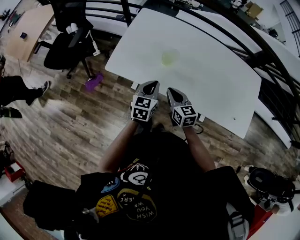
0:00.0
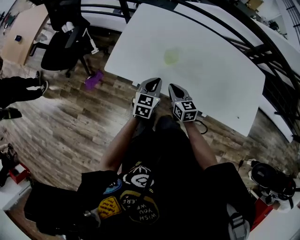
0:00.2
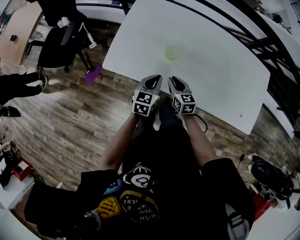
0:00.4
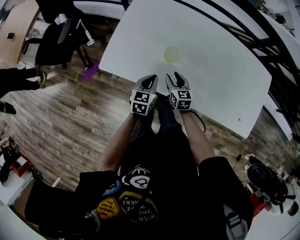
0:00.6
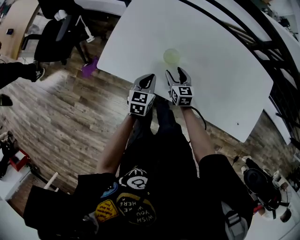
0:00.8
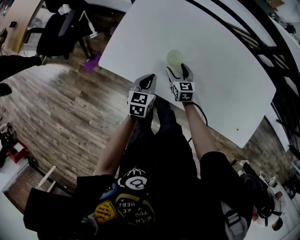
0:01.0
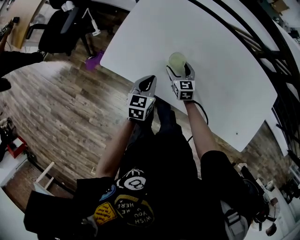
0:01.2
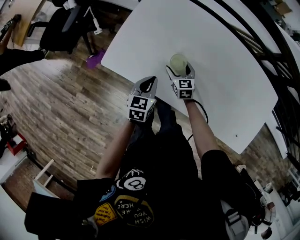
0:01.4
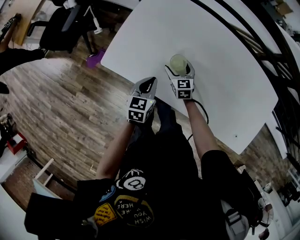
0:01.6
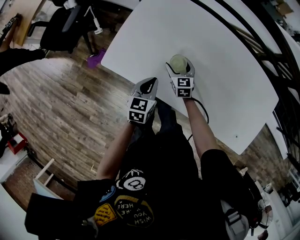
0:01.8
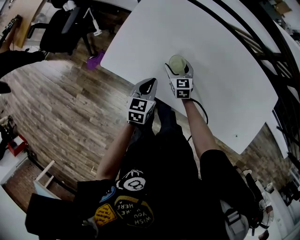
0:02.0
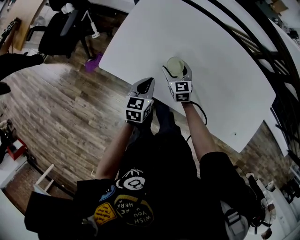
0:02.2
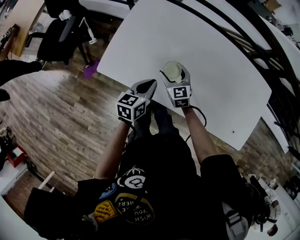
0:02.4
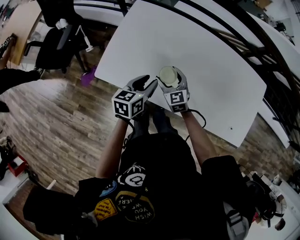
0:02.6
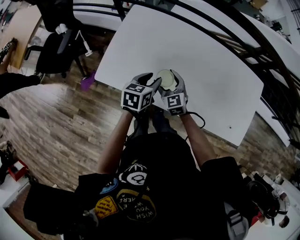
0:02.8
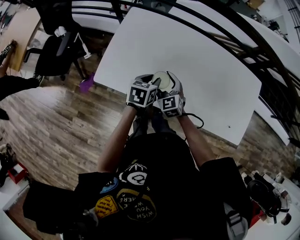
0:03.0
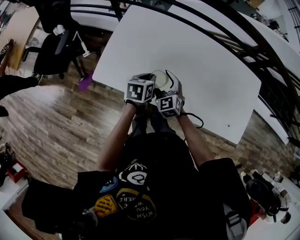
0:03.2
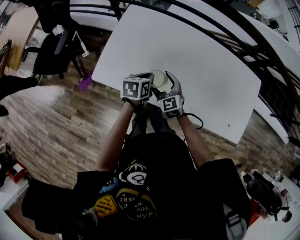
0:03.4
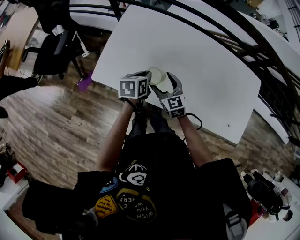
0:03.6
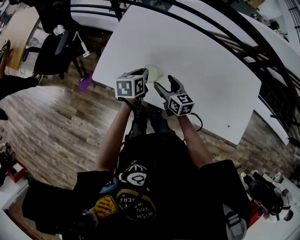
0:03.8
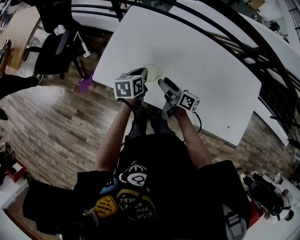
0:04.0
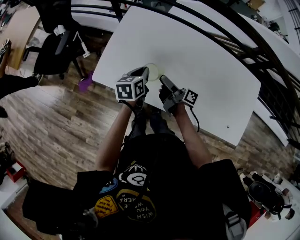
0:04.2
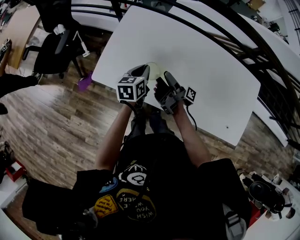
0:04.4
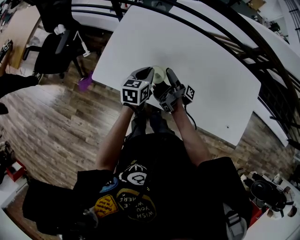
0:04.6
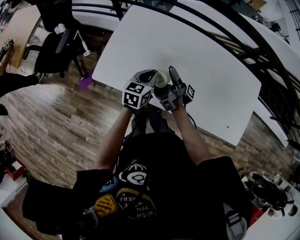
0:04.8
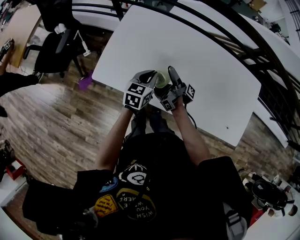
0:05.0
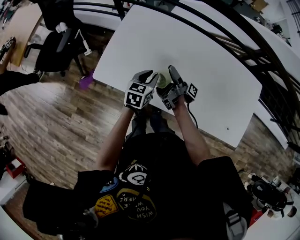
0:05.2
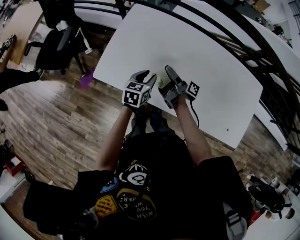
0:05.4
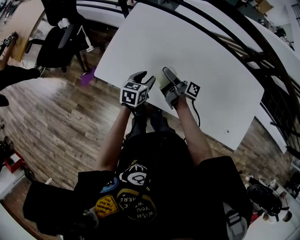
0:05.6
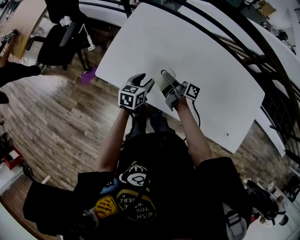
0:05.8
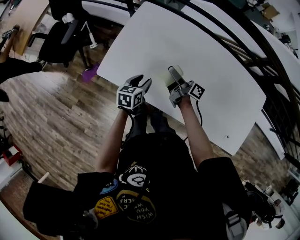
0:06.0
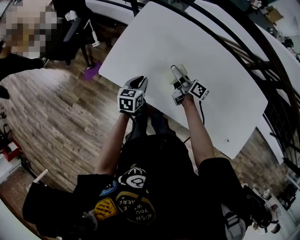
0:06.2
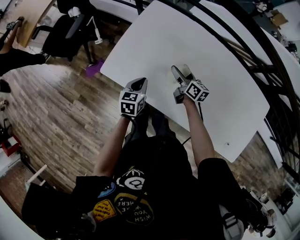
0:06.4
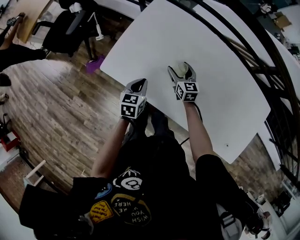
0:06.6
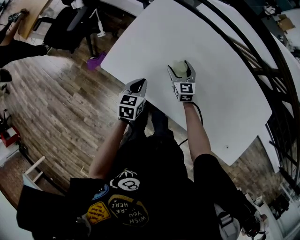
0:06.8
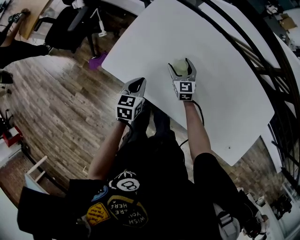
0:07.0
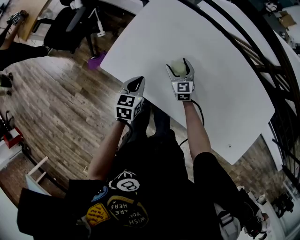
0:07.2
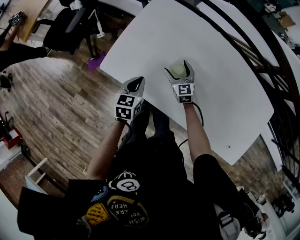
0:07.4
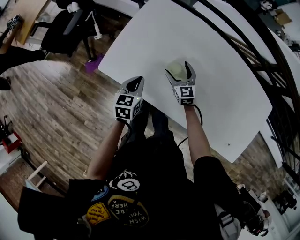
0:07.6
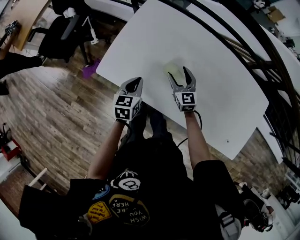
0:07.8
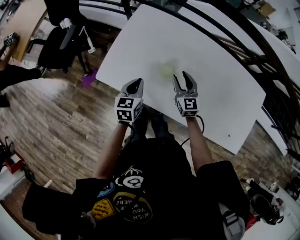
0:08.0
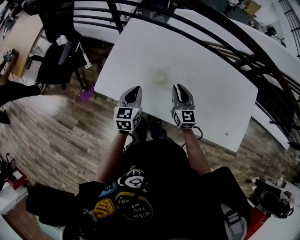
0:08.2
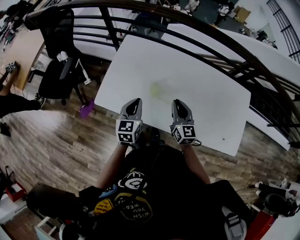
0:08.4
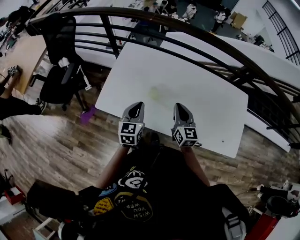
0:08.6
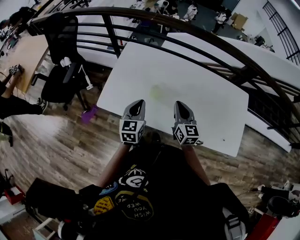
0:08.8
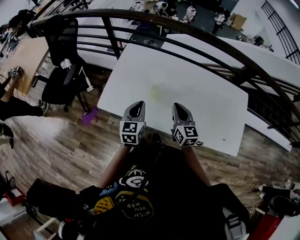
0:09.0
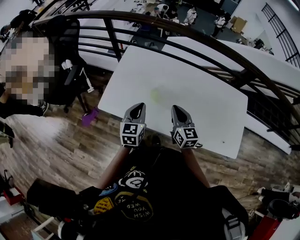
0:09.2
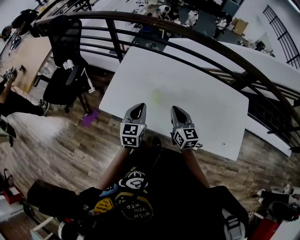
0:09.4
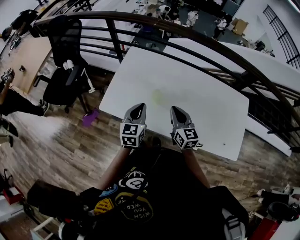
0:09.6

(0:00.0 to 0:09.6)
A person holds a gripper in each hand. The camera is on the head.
0:00.0 - 0:01.6: The left gripper is displaced downward and forward by about 15 cm; the right gripper is displaced forward and downward by about 25 cm, and opens.
0:01.6 - 0:03.2: The left gripper goes some 10 cm to the right and upward, and opens and closes again, while the right gripper moves upward and backward, approximately 15 cm, and turns by roughly 20 degrees.
0:03.2 - 0:04.8: The right gripper moves about 5 cm, and rolls clockwise, seen from behind, by about 130 degrees.
0:04.8 - 0:06.4: The left gripper heads to the left and downward, covering approximately 10 cm, turns by approximately 20 degrees, and opens and closes again; the right gripper heads downward and forward, covering approximately 10 cm, and twists some 70 degrees counterclockwise, seen from behind.
0:06.4 - 0:08.0: The right gripper heads backward, covering approximately 5 cm, rotates around the line of its fingers by roughly 40 degrees, counterclockwise from behind, and closes.
0:08.0 - 0:09.6: The right gripper travels upward and backward by roughly 15 cm, and closes up, while the left gripper travels upward by approximately 15 cm.

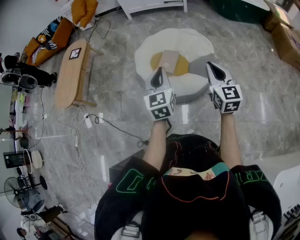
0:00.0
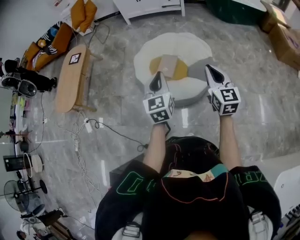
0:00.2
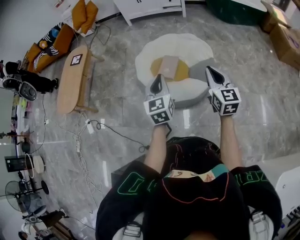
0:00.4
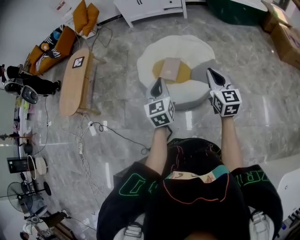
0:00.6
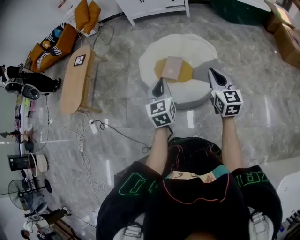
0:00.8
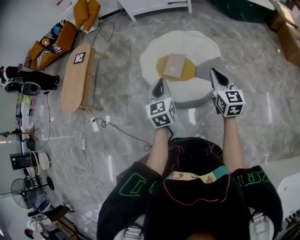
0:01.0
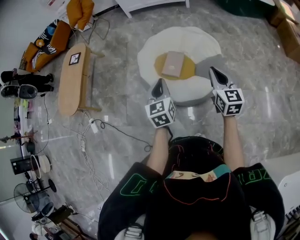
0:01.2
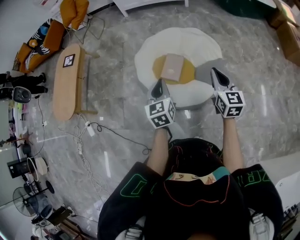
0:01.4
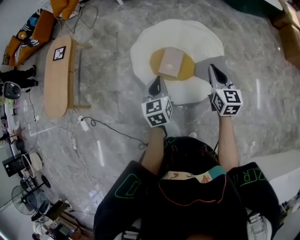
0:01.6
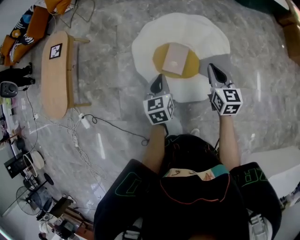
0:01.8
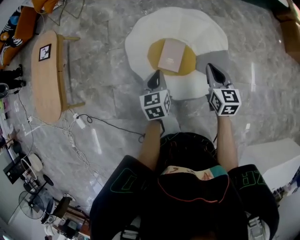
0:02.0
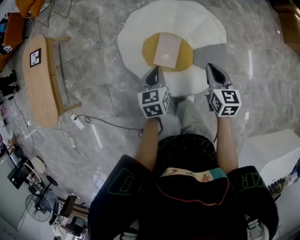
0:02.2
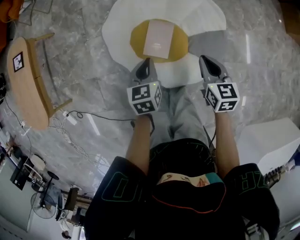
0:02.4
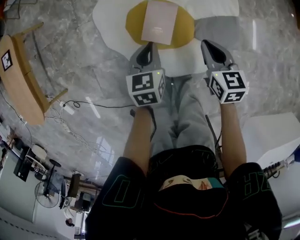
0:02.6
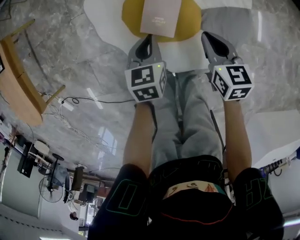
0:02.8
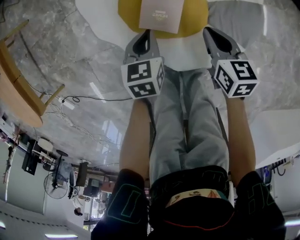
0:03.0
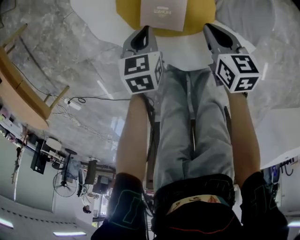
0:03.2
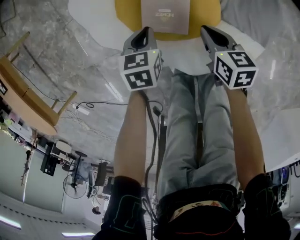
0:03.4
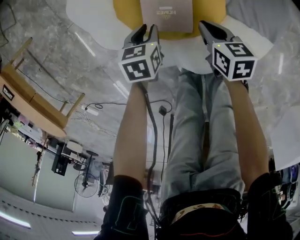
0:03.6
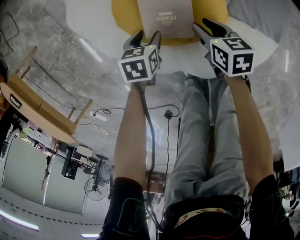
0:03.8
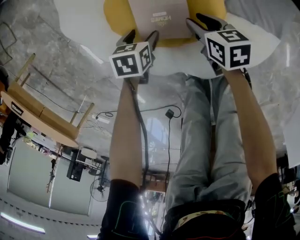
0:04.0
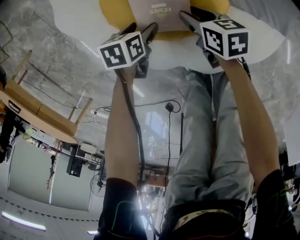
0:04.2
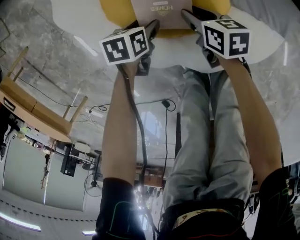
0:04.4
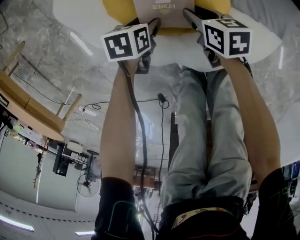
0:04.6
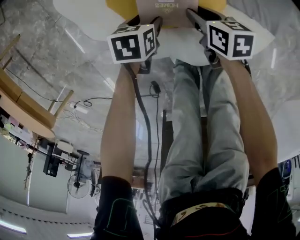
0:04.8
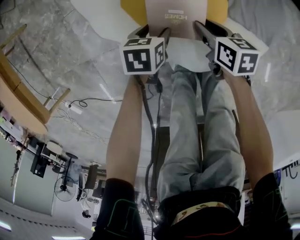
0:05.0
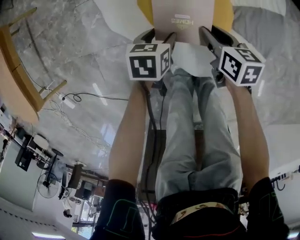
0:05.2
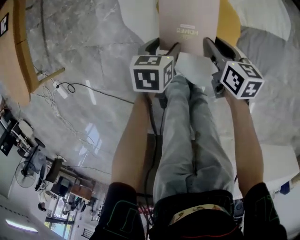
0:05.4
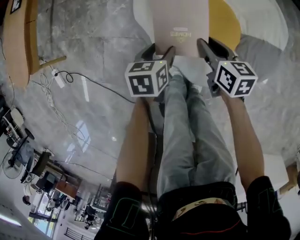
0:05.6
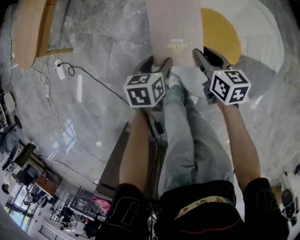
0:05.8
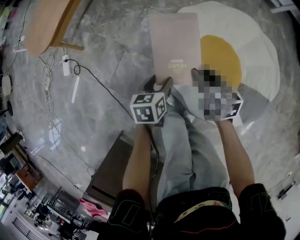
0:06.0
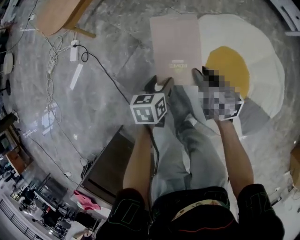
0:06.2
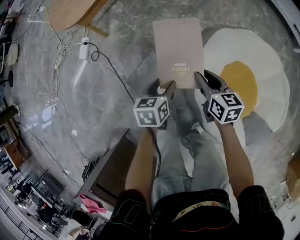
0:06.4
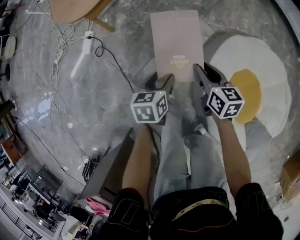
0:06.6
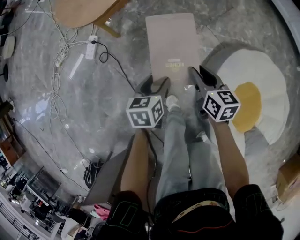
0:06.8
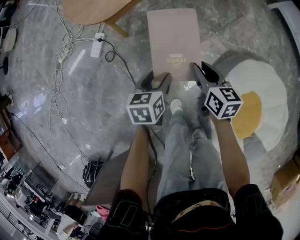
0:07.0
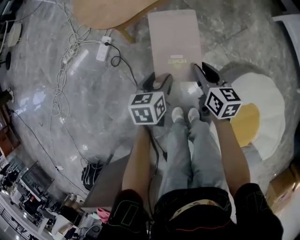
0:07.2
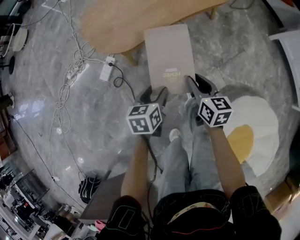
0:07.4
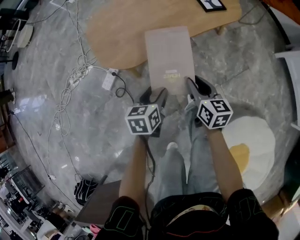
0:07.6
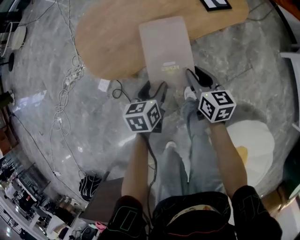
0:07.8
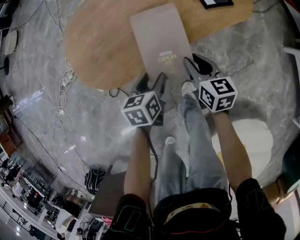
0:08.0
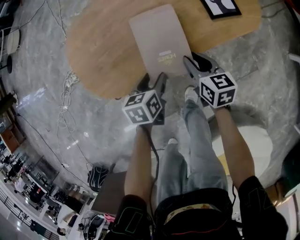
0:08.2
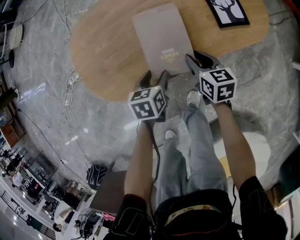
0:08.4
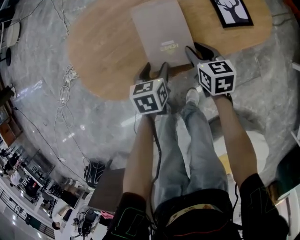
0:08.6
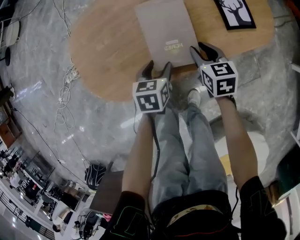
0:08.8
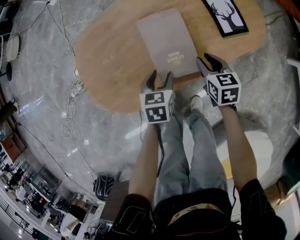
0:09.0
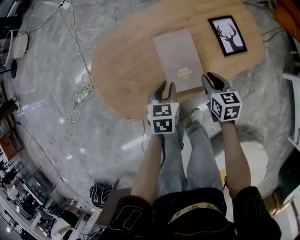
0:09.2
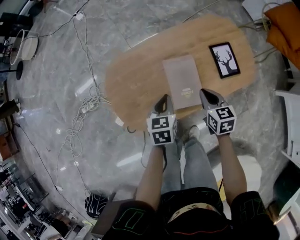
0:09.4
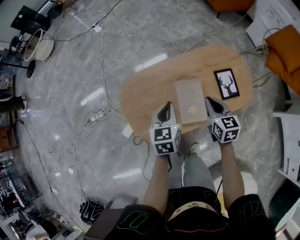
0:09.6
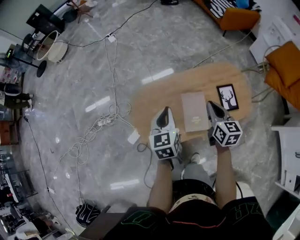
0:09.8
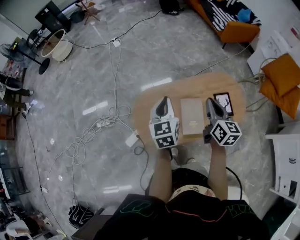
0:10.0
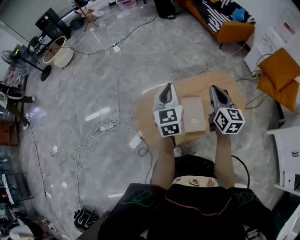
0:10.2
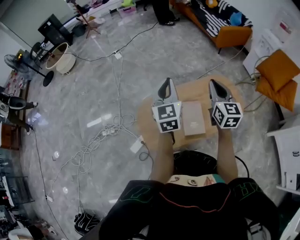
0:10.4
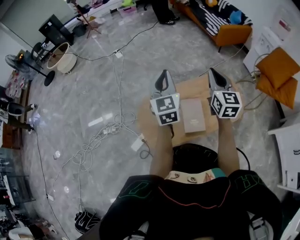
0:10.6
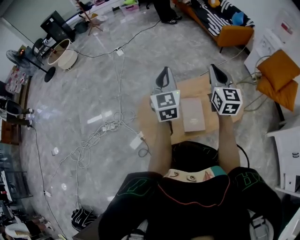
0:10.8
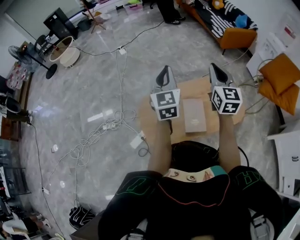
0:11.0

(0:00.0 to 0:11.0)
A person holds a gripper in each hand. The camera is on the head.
0:00.0 - 0:01.6: The grippers both shift forward and downward by roughly 25 cm.
0:01.6 - 0:03.2: The grippers both shift downward by some 40 cm. The left gripper swivels approximately 30 degrees. Meanwhile the right gripper changes its angle by roughly 30 degrees.
0:03.2 - 0:04.8: The grippers both shift downward by about 15 cm. The right gripper opens its fingers; the left gripper changes its angle by about 20 degrees, and opens.
0:04.8 - 0:06.2: The right gripper moves roughly 40 cm, and rotates around the line of its fingers by roughly 40 degrees, counterclockwise from behind; the left gripper moves some 40 cm, and changes its angle by some 70 degrees.
0:06.2 - 0:07.8: The pair of grippers is taken forward and to the left, approximately 70 cm. The left gripper rotates some 20 degrees.
0:07.8 - 0:09.4: The right gripper heads forward, covering about 25 cm, and closes; the left gripper goes some 25 cm forward and upward, and closes up.
0:09.4 - 0:11.0: Both grippers move upward, about 40 cm. The left gripper points its fingers approximately 40 degrees further upward. The right gripper angles its fingers upward, by approximately 40 degrees.

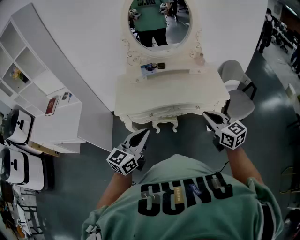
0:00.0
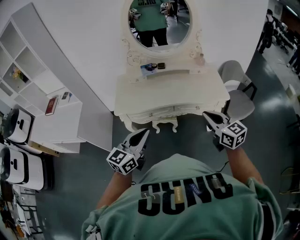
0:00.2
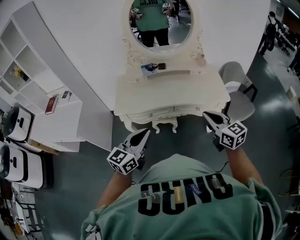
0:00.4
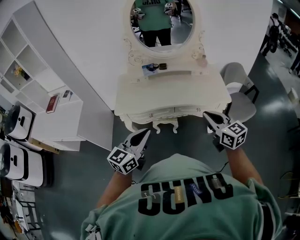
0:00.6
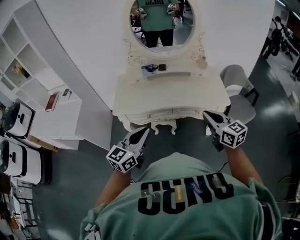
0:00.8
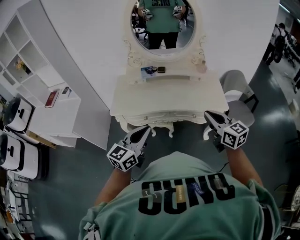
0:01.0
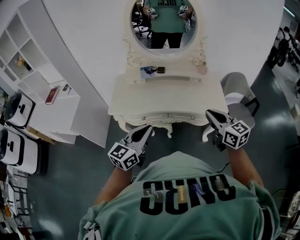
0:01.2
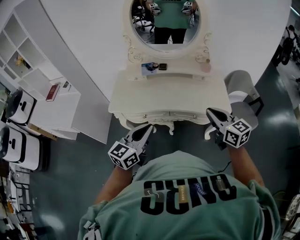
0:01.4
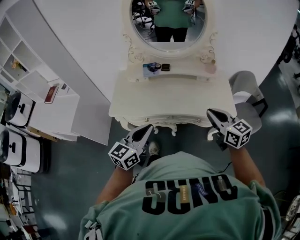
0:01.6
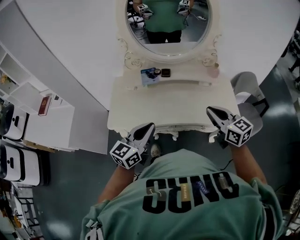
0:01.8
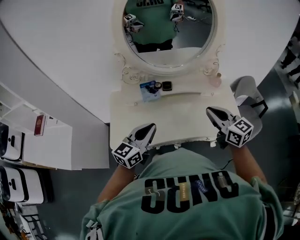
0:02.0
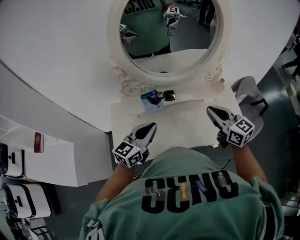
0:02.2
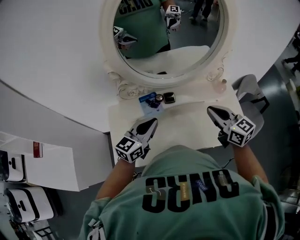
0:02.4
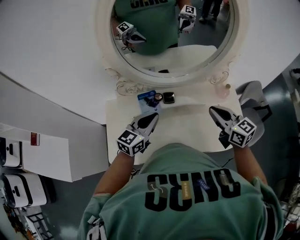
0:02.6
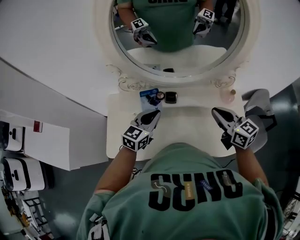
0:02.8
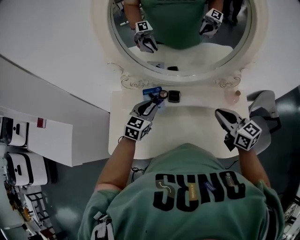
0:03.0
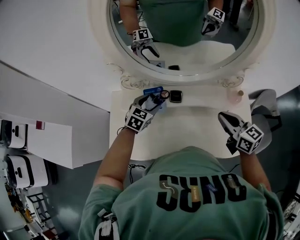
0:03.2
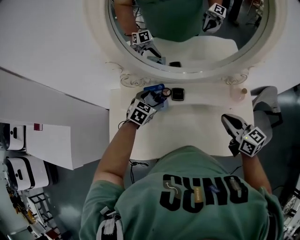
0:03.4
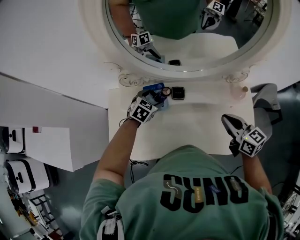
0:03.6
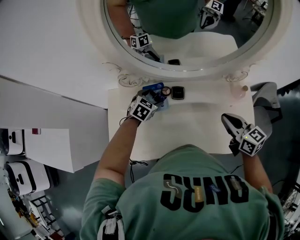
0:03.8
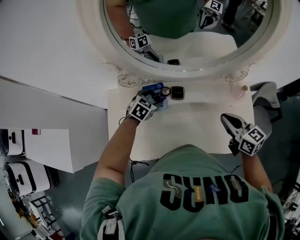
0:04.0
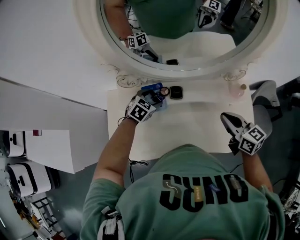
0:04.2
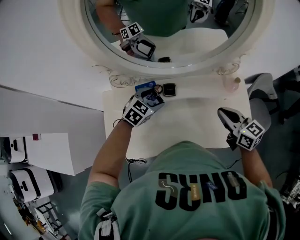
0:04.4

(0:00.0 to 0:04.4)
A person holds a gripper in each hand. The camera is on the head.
0:00.0 - 0:01.4: The right gripper heads forward and to the right, covering approximately 15 cm. Meanwhile the left gripper travels to the right and forward by about 15 cm.
0:01.4 - 0:03.0: The grippers both shift forward by roughly 50 cm. The left gripper turns by approximately 30 degrees.
0:03.0 - 0:04.4: The left gripper is displaced downward by some 5 cm, changes its angle by some 30 degrees, and opens up.
